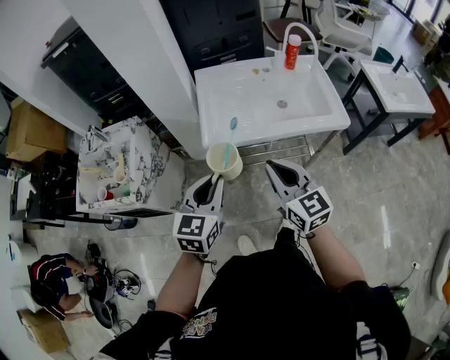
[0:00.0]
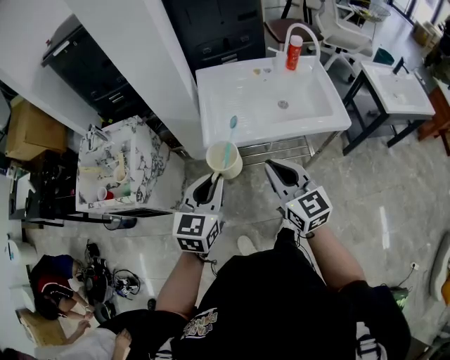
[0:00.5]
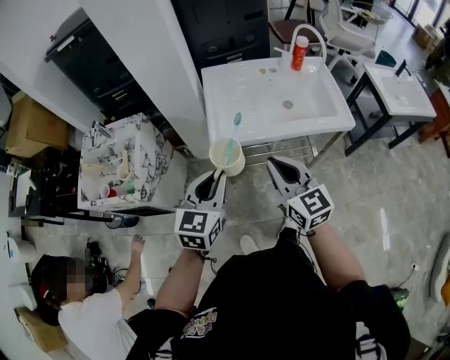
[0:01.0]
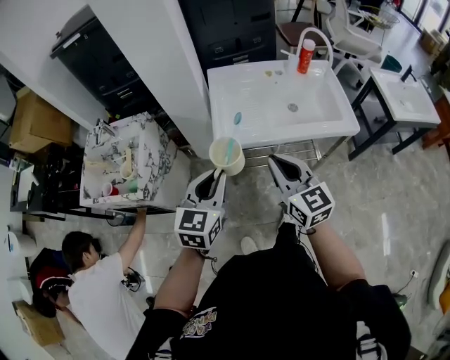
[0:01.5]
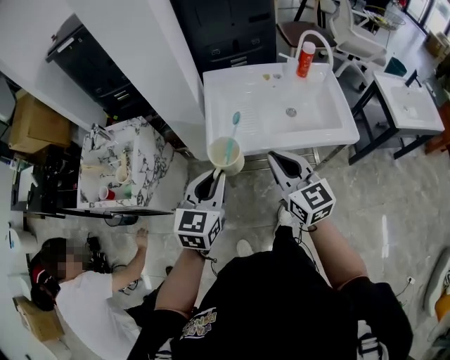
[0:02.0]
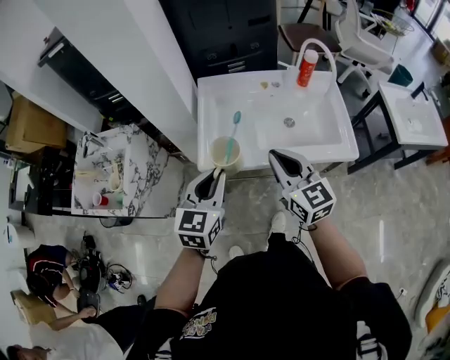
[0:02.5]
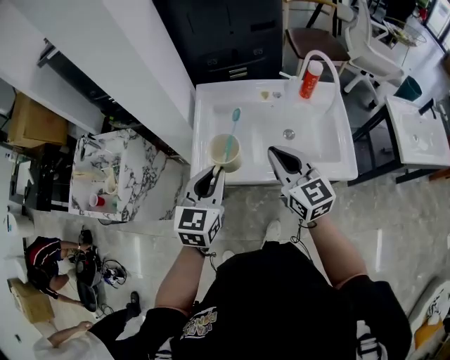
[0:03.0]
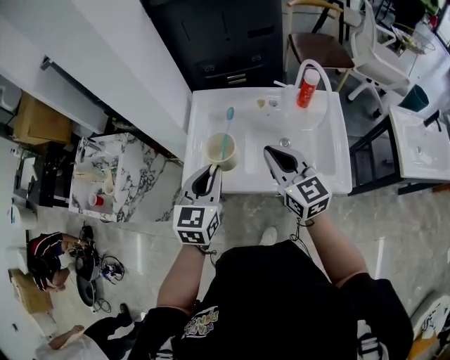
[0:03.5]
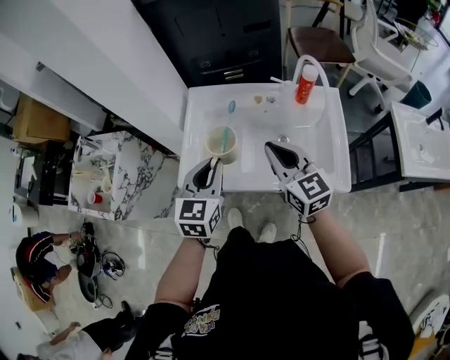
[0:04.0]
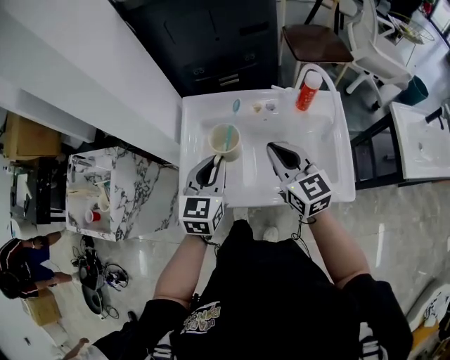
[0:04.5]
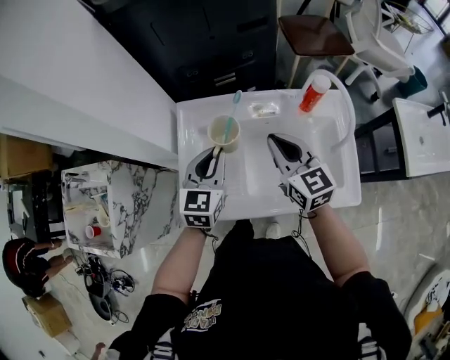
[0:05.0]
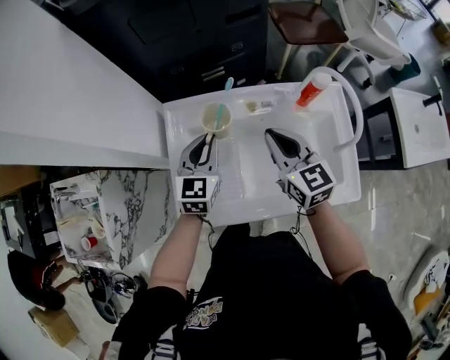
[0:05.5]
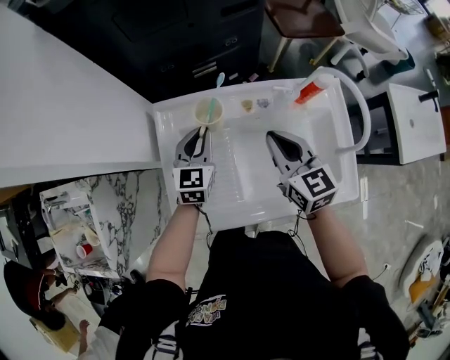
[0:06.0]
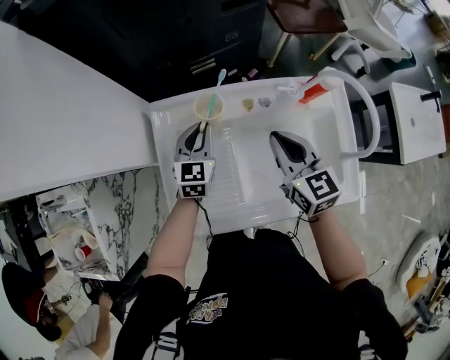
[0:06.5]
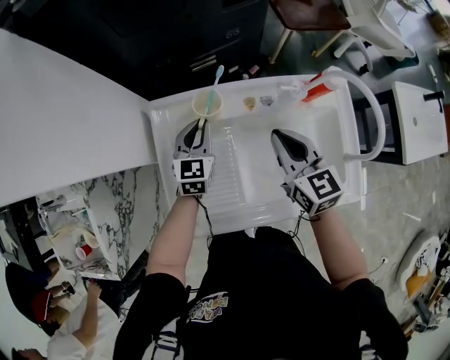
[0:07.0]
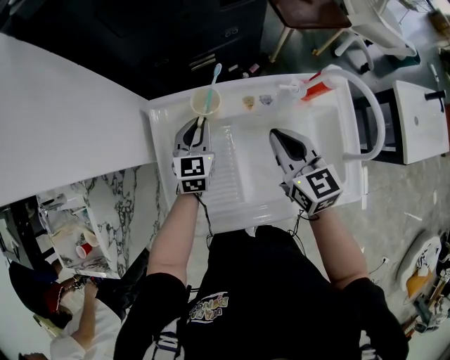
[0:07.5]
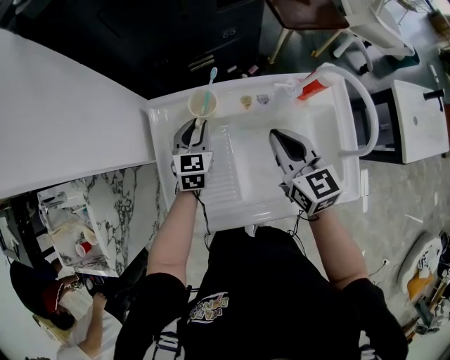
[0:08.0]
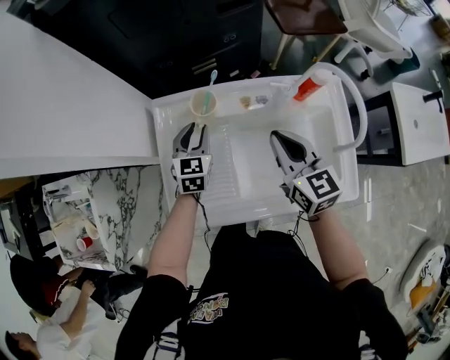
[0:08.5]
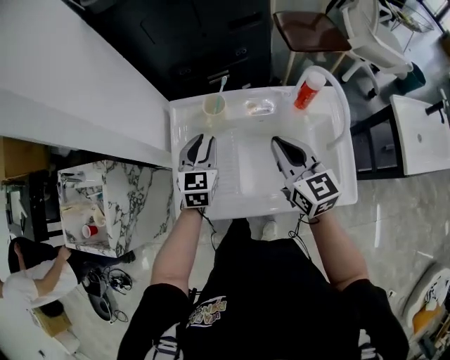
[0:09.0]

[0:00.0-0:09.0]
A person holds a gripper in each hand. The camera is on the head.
0:00.0 to 0:02.0: The two grippers go roughly 5 cm forward.
0:02.0 to 0:04.5: Both grippers travel together forward and to the right, some 30 cm.
0:04.5 to 0:07.0: The left gripper heads forward and downward, covering some 25 cm; the right gripper is displaced forward and downward by about 15 cm.
0:07.0 to 0:09.0: The two grippers go approximately 10 cm backward and upward.

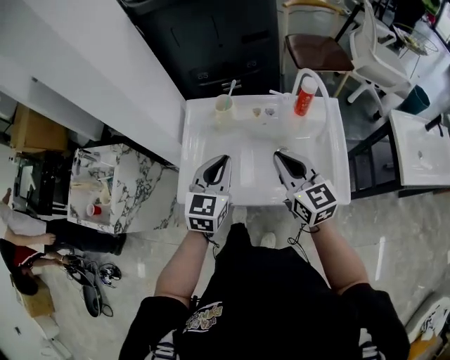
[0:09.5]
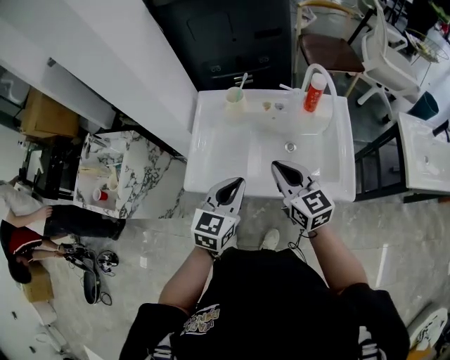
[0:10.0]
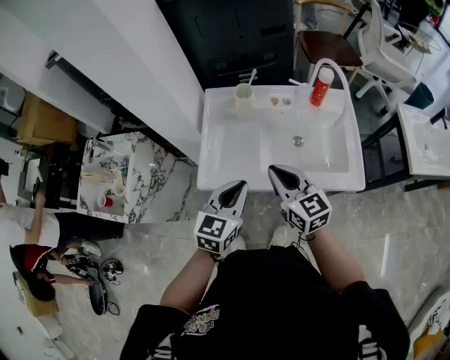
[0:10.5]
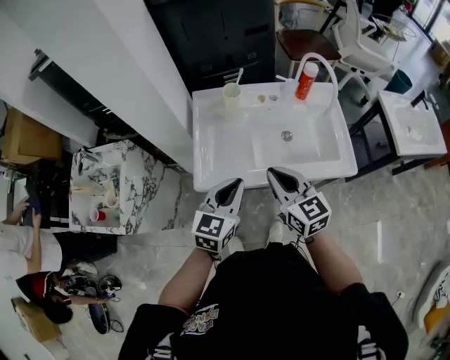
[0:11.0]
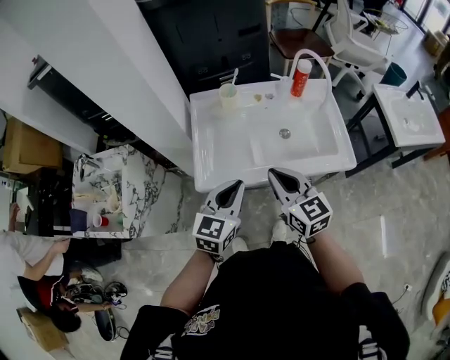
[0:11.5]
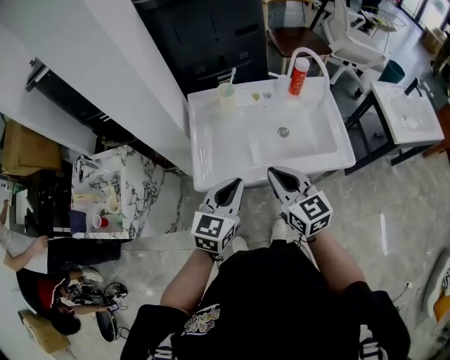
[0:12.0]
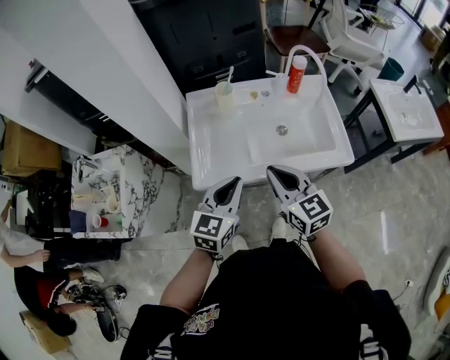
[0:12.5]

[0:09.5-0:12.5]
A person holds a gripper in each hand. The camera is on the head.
0:09.5 to 0:11.0: The left gripper shifts some 15 cm backward and to the left; the right gripper travels to the left and backward by about 15 cm.
0:11.0 to 0:12.5: There are only small adjustments of the grippers.

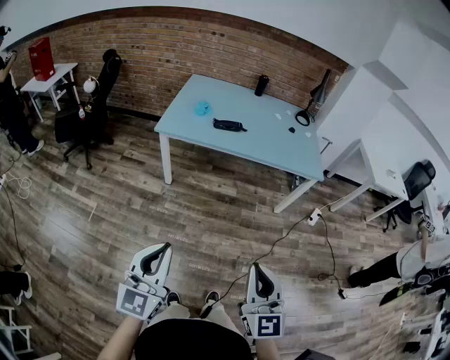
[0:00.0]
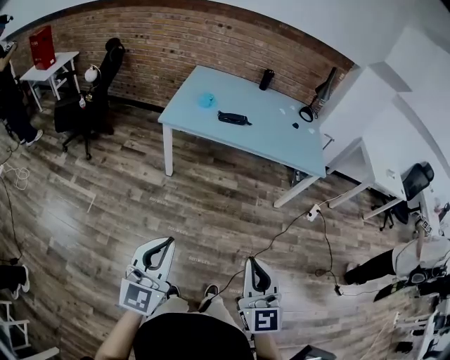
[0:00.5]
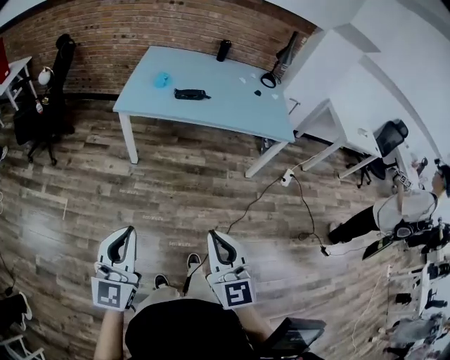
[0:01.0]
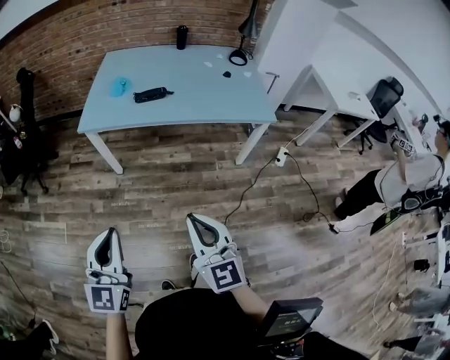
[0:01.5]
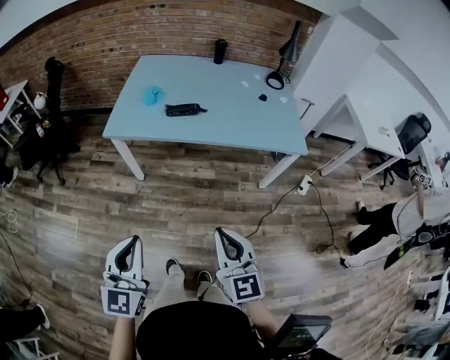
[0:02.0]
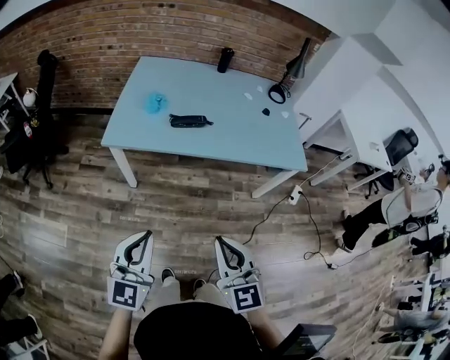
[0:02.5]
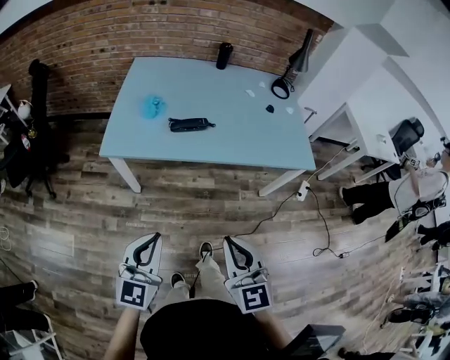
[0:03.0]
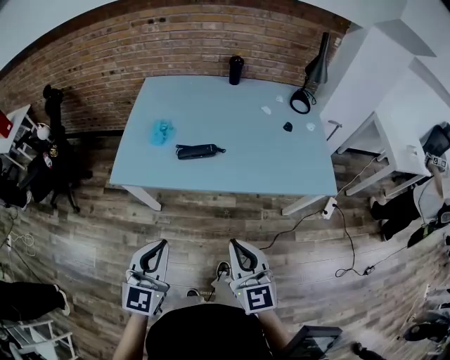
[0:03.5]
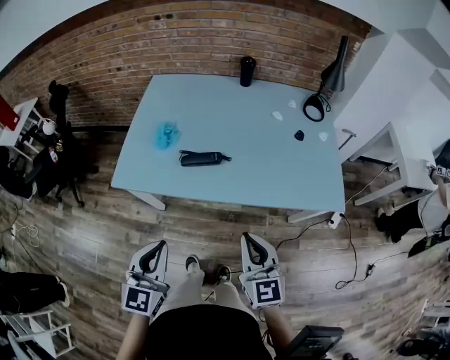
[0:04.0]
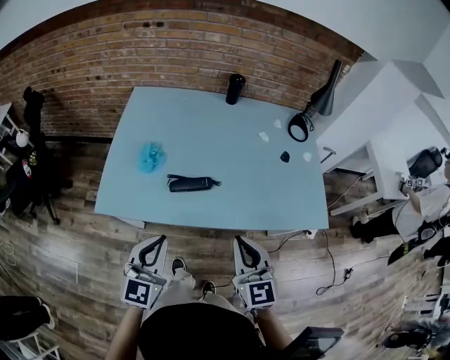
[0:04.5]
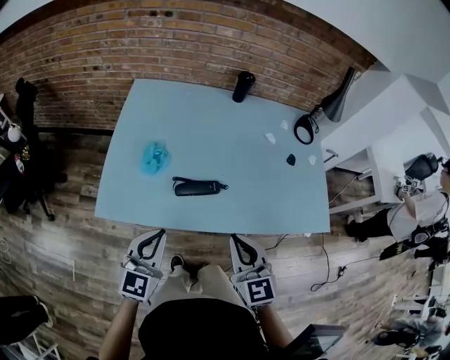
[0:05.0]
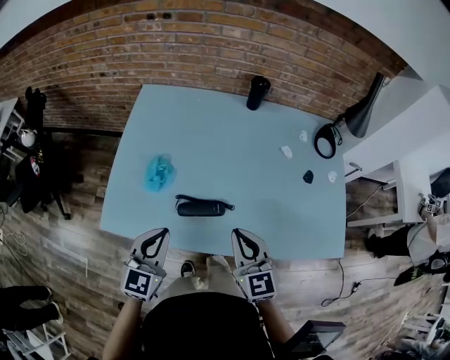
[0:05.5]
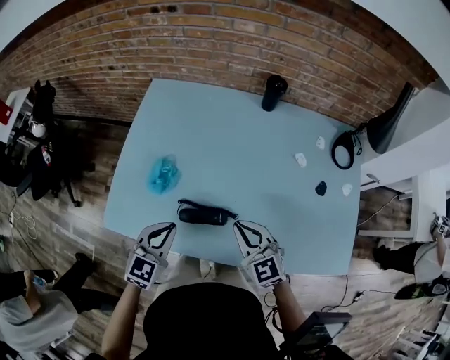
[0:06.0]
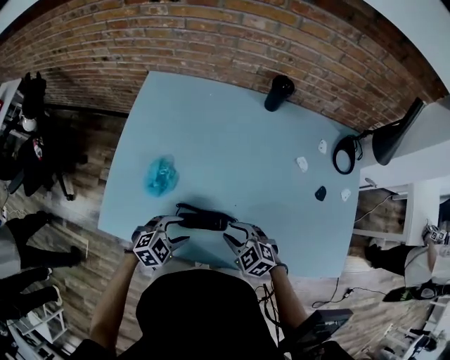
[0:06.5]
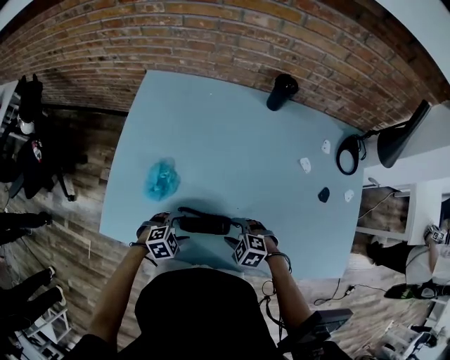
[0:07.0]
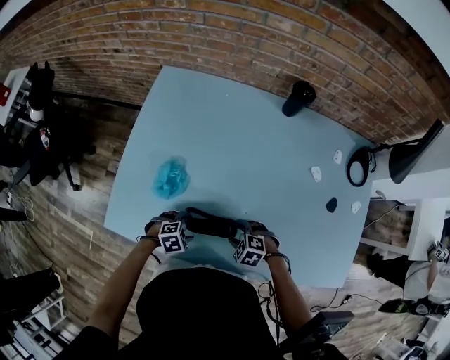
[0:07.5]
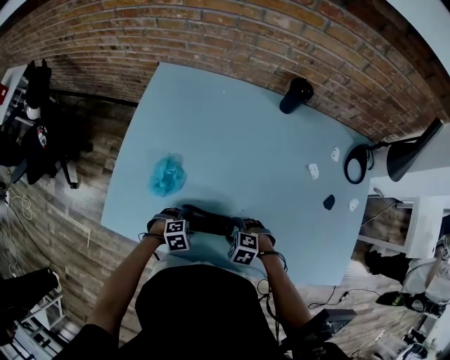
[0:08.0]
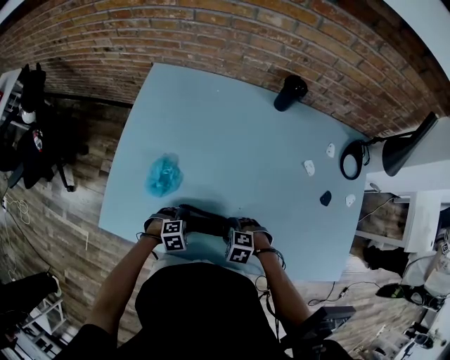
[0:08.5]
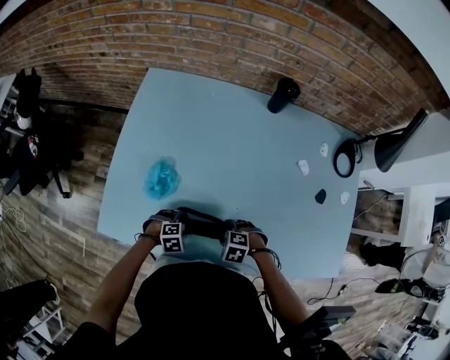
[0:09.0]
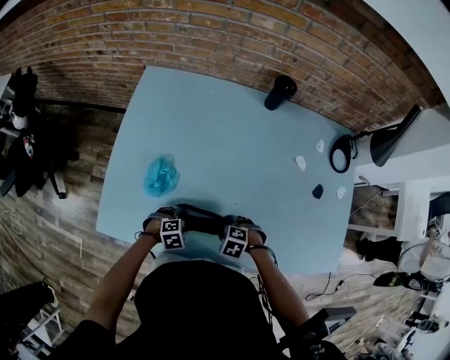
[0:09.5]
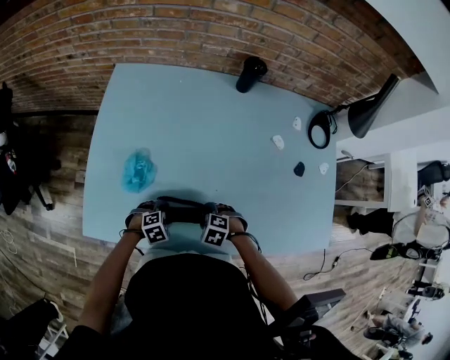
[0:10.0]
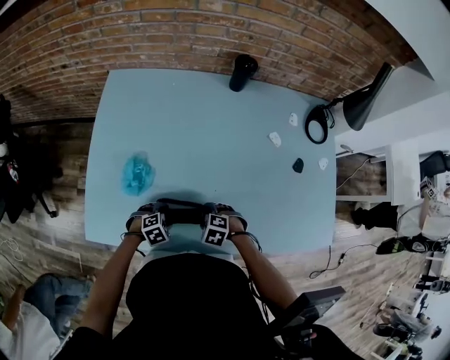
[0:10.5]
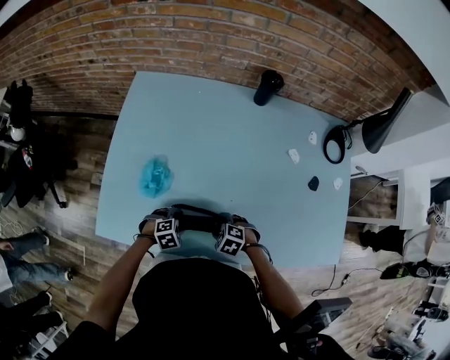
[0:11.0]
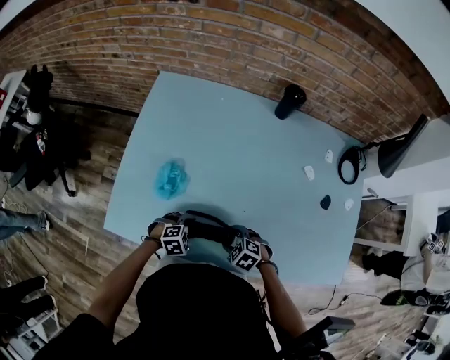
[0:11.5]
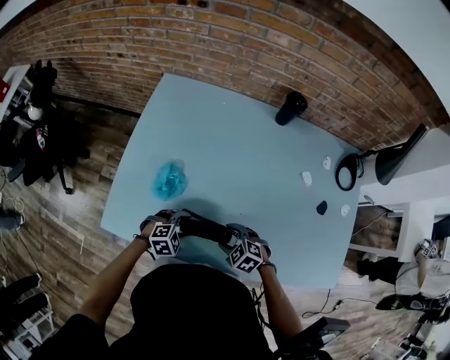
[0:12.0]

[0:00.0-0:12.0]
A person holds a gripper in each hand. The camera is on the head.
0:00.0 to 0:02.0: Both grippers travel together forward, approximately 20 cm.
0:02.0 to 0:04.0: Both grippers travel together forward, approximately 30 cm.
0:04.0 to 0:06.0: Both grippers move forward, some 35 cm. The right gripper swivels some 30 degrees.
0:06.0 to 0:08.0: Both grippers travel together downward, roughly 25 cm. The left gripper points its fingers roughly 50 degrees further downward, and opens up, while the right gripper tips its fingers downward by about 50 degrees, and opens its fingers.
0:08.0 to 0:10.0: The grippers make only small movements.
0:10.0 to 0:12.0: The grippers both shift upward by some 5 cm.

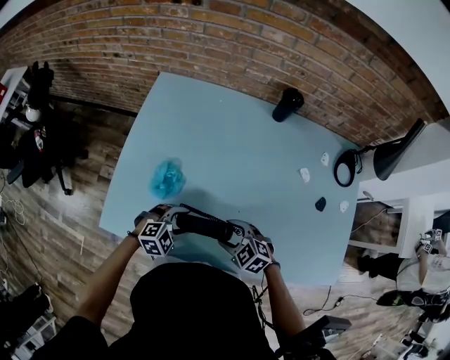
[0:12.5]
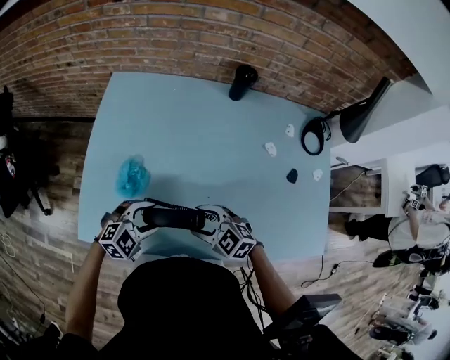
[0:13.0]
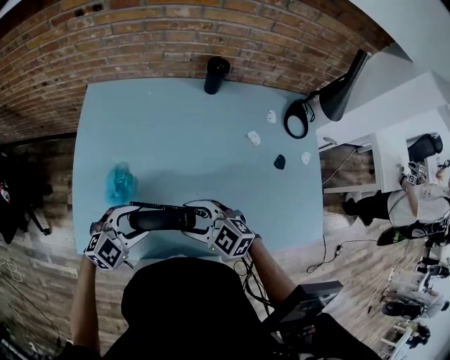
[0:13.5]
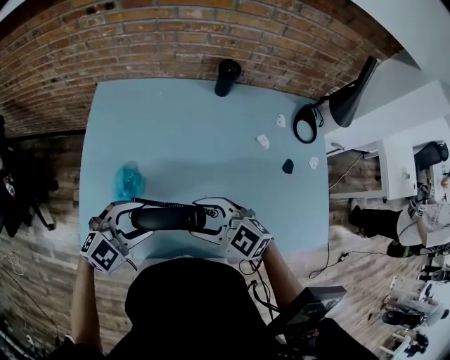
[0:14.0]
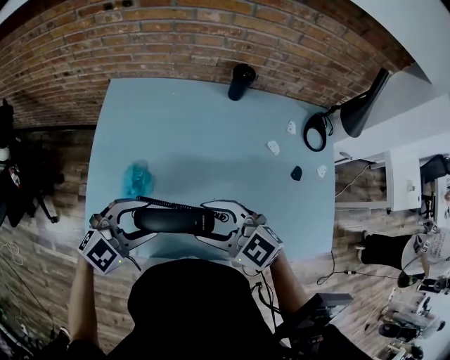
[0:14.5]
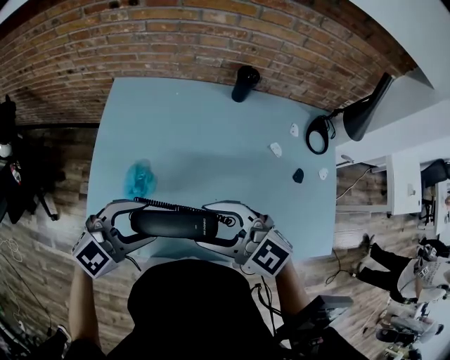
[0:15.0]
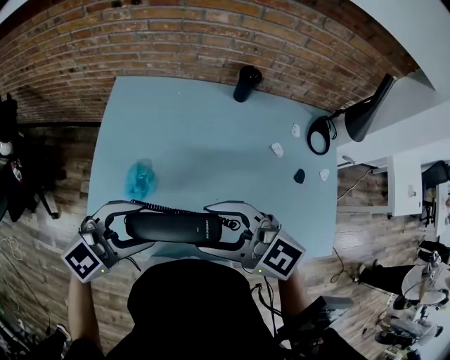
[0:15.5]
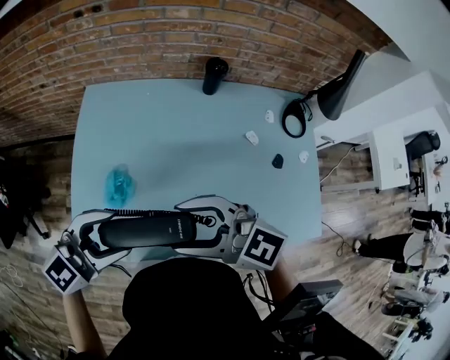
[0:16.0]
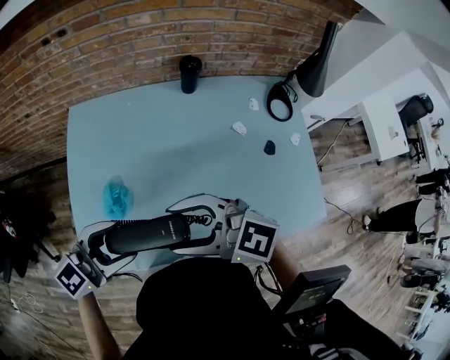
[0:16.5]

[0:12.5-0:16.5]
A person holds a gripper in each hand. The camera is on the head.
0:12.5 to 0:14.5: Both grippers move upward, some 20 cm. The right gripper rotates roughly 30 degrees; the left gripper swivels approximately 20 degrees.
0:14.5 to 0:16.5: Both grippers move upward, roughly 10 cm. The left gripper changes its angle by roughly 20 degrees.
